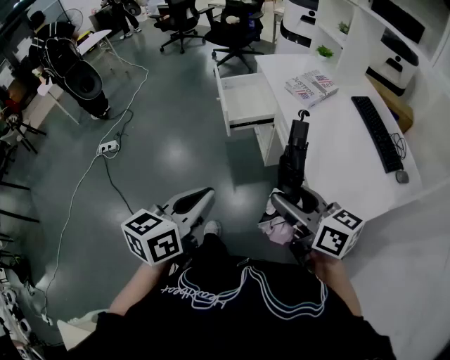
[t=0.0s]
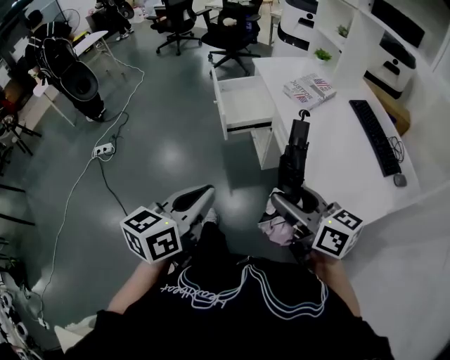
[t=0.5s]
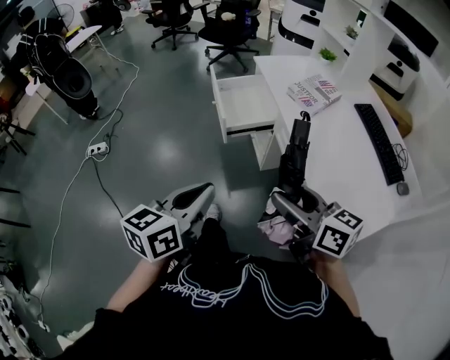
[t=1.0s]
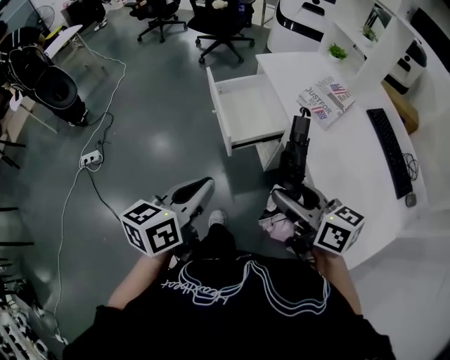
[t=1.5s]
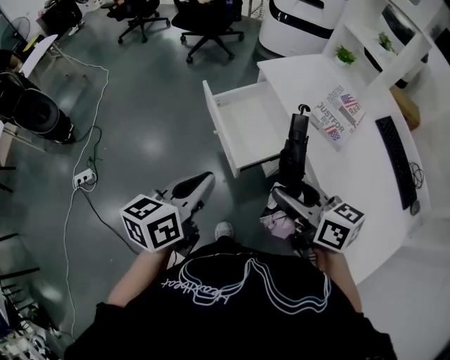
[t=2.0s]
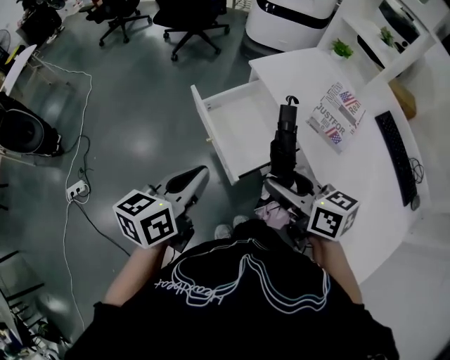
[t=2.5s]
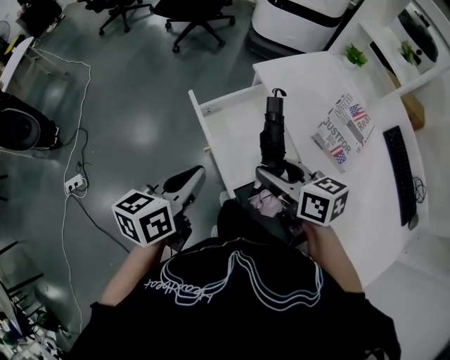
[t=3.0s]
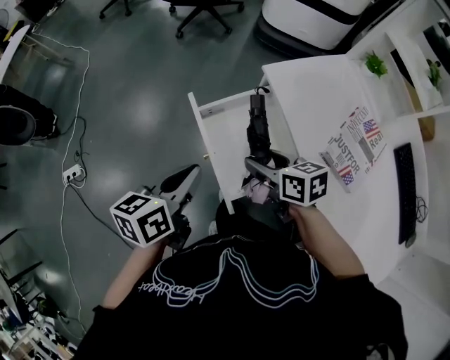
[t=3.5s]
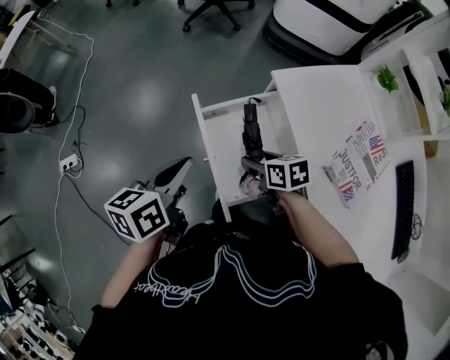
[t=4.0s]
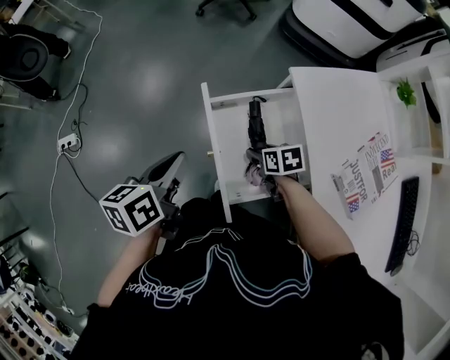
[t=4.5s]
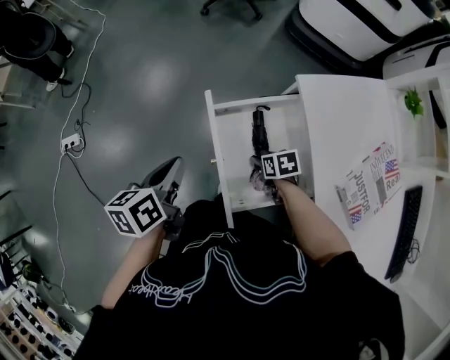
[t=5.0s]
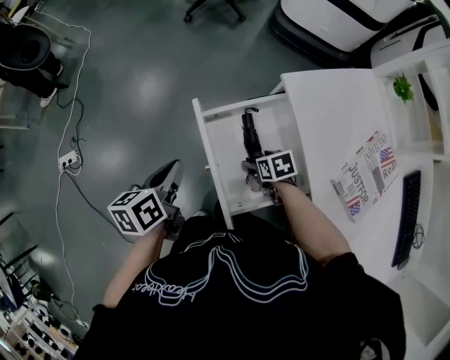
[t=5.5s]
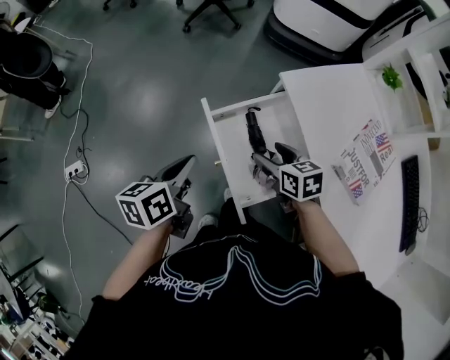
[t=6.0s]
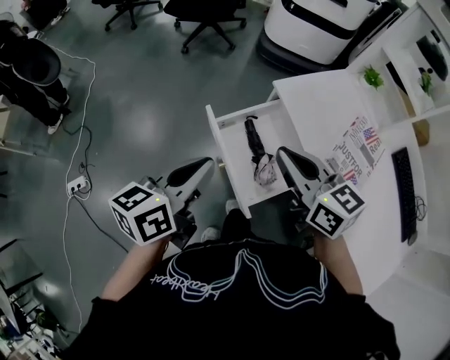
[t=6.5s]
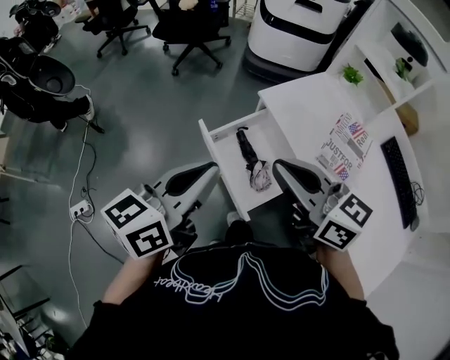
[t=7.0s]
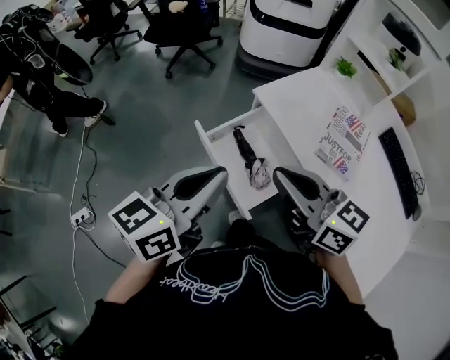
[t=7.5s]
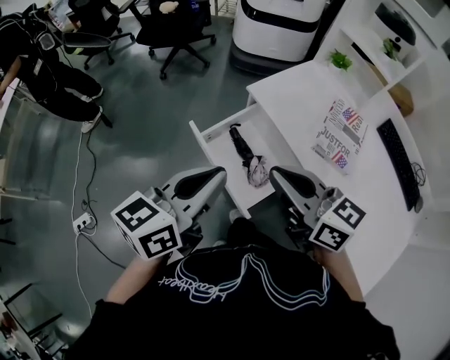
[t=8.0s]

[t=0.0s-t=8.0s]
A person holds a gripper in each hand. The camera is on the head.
t=0.0s to t=2.0s: Both grippers travel together forward, about 35 cm.
t=2.0s to t=4.0s: Both grippers move forward and downward, roughly 30 cm. The right gripper changes its angle by roughly 30 degrees.
t=4.0s to t=6.0s: The right gripper moves approximately 15 cm downward and comes back.
t=6.0s to t=8.0s: The right gripper travels upward and backward by approximately 30 cm, tips its fingers upward by about 30 degrees, and closes its fingers, while the left gripper goes some 20 cm upward and to the right, and turns by about 40 degrees.

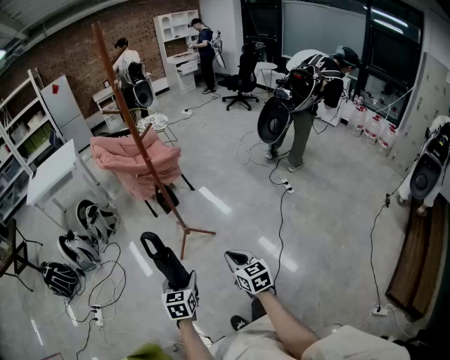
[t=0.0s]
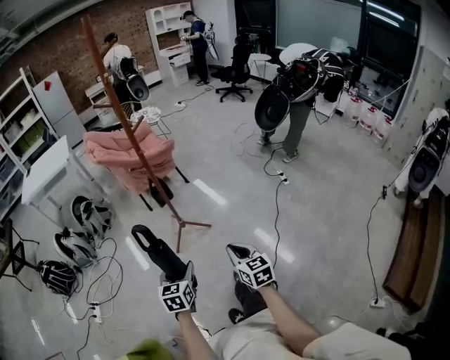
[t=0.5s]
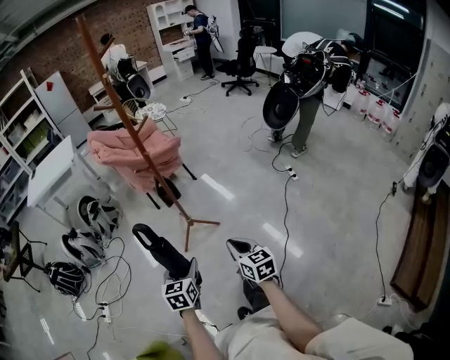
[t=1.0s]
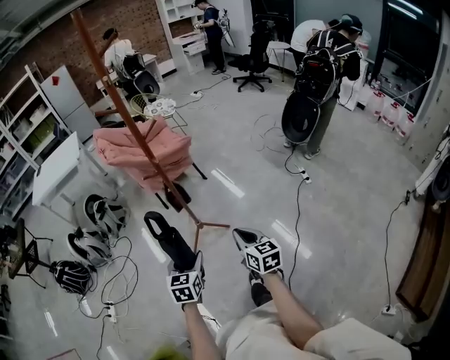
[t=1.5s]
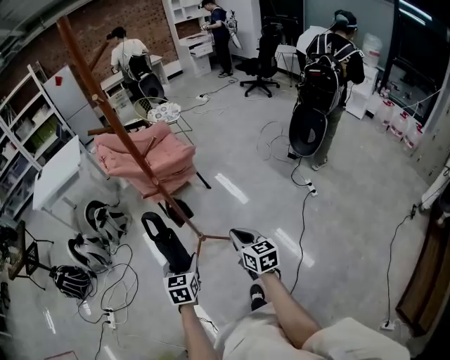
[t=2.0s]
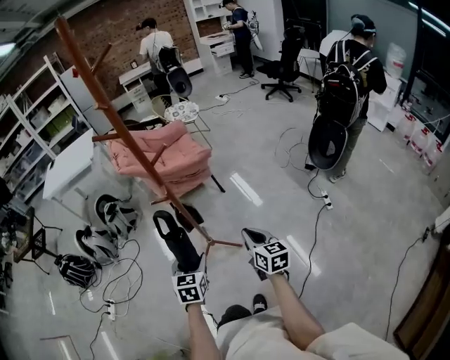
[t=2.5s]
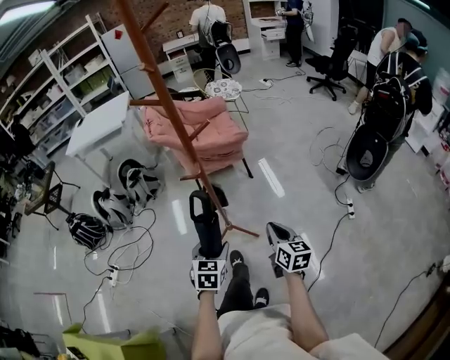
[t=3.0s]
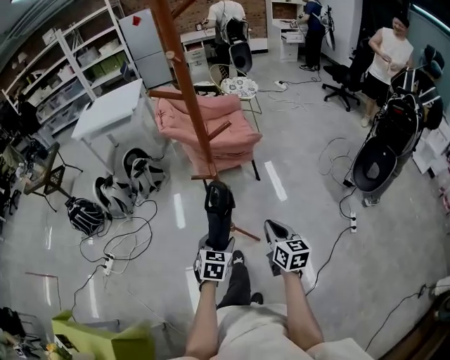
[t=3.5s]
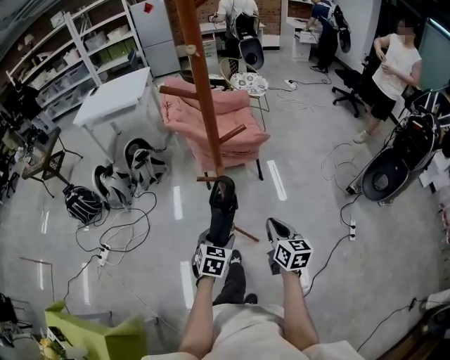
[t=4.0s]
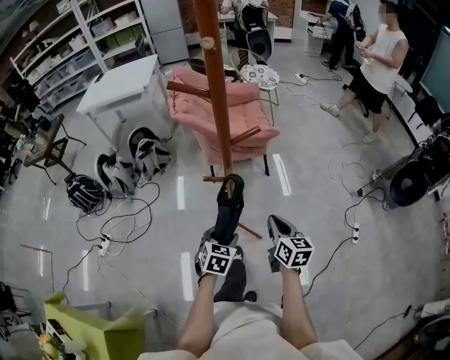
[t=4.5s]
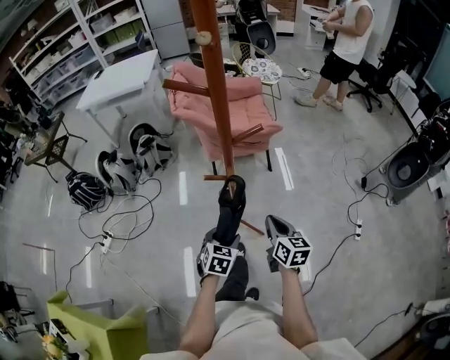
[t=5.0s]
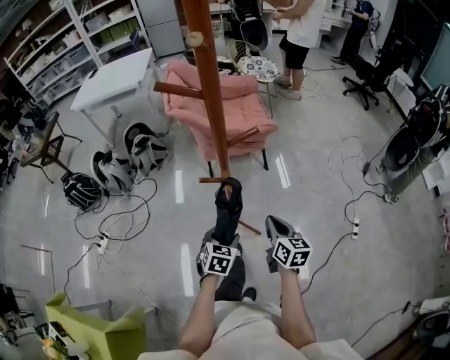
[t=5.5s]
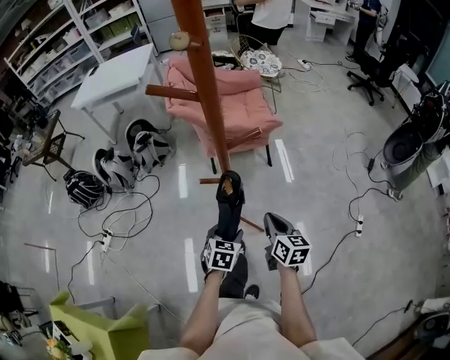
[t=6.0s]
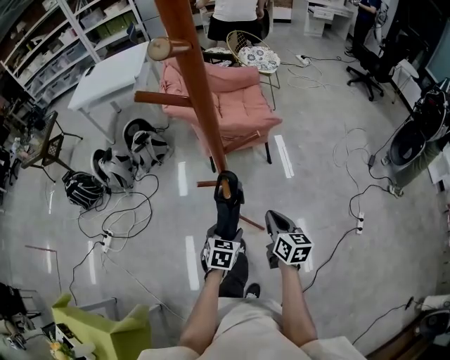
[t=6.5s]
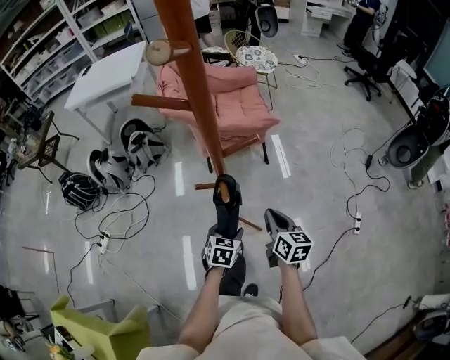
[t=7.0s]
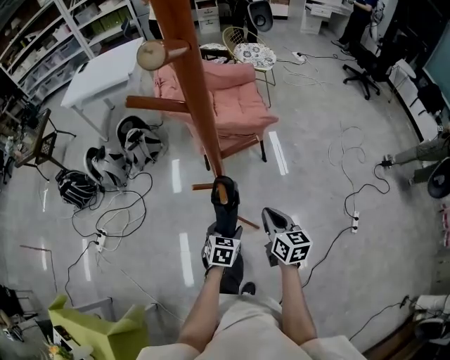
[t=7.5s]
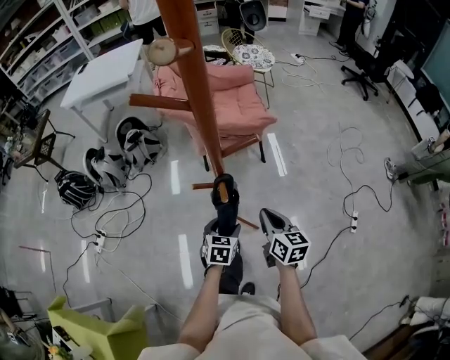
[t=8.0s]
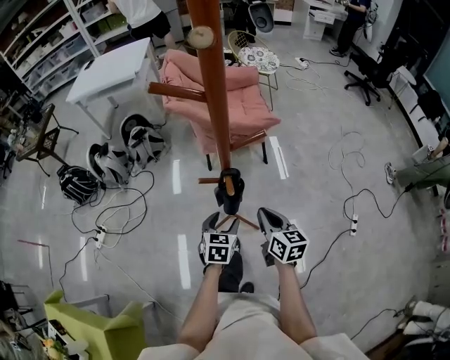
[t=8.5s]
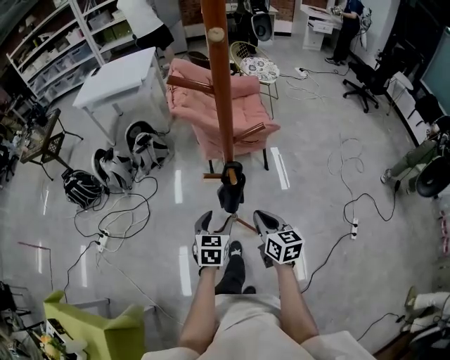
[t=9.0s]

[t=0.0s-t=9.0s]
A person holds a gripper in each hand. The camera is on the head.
t=0.0s to t=2.0s: The grippers both shift forward by some 20 cm.
t=2.0s to t=4.5s: The left gripper is displaced forward and downward by about 10 cm; the right gripper goes roughly 15 cm forward.
t=4.5s to t=7.0s: The left gripper changes place by approximately 5 cm.
t=7.0s to t=9.0s: The left gripper is displaced upward and to the left by about 10 cm. The right gripper goes approximately 5 cm to the left.

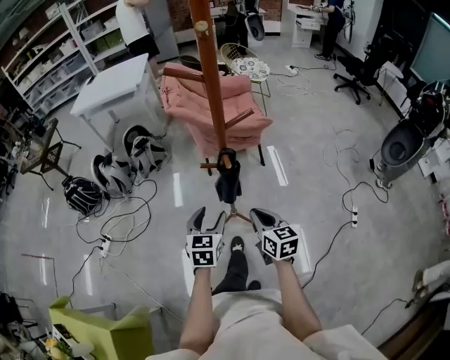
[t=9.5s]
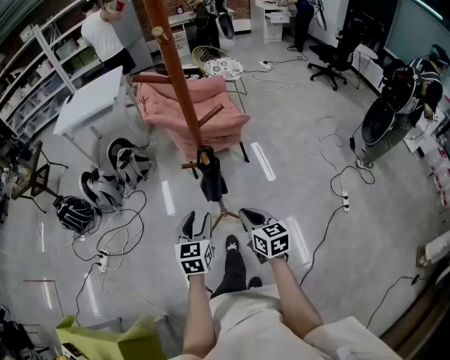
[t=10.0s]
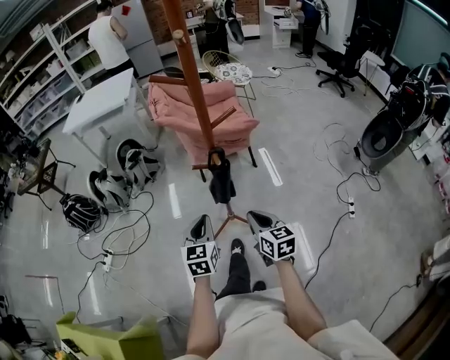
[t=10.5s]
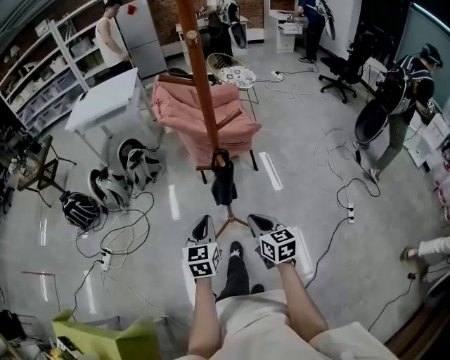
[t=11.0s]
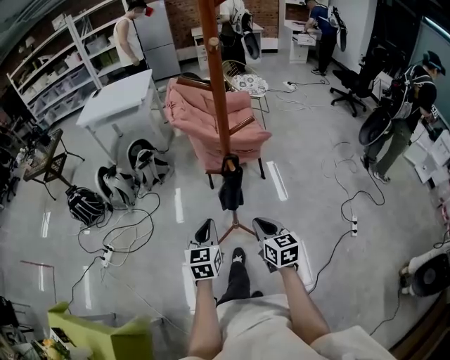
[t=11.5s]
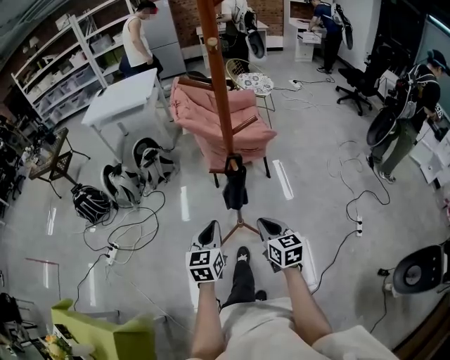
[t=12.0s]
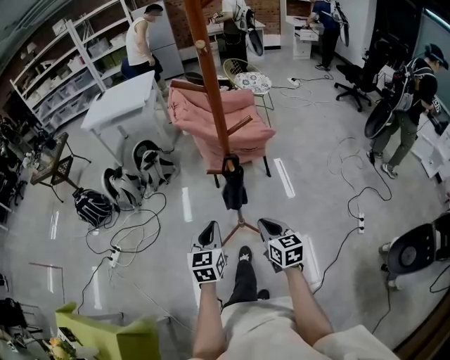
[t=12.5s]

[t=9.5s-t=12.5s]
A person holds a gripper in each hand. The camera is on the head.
t=9.5s to t=11.0s: The left gripper closes.
t=11.0s to t=12.5s: There are only small adjustments of the grippers.

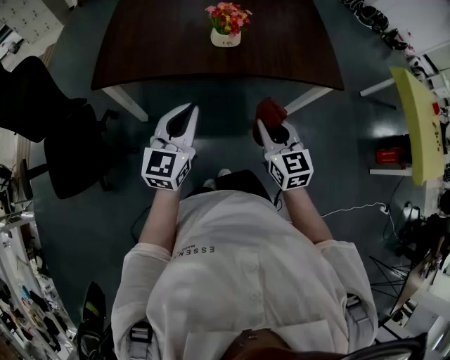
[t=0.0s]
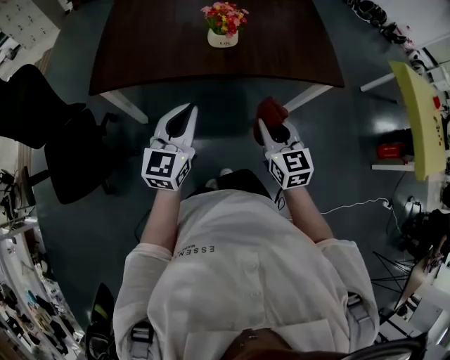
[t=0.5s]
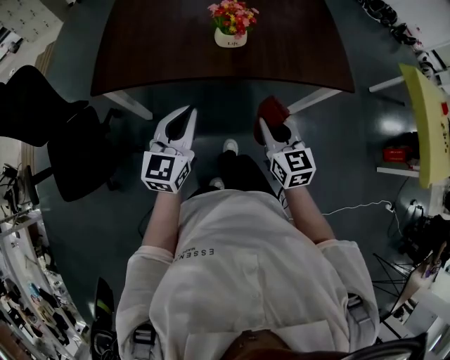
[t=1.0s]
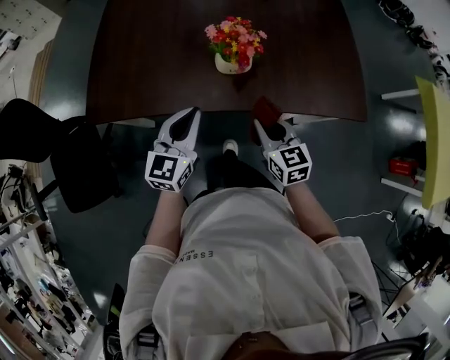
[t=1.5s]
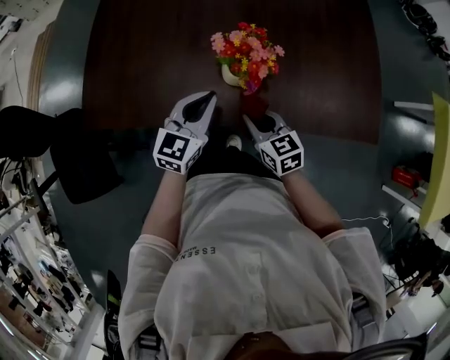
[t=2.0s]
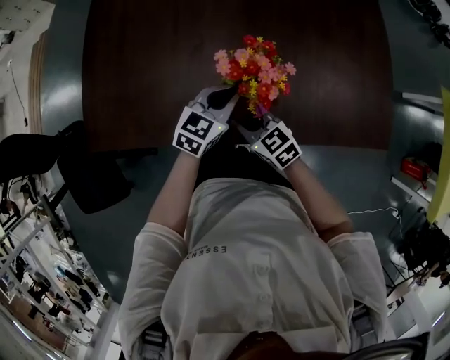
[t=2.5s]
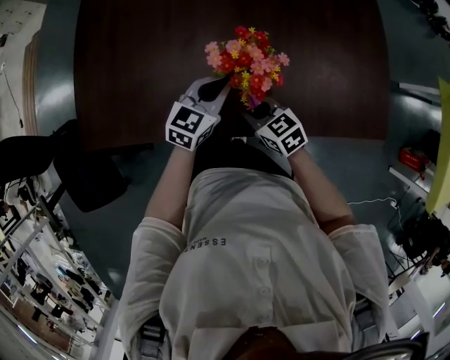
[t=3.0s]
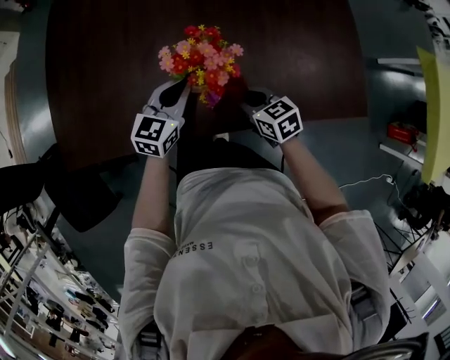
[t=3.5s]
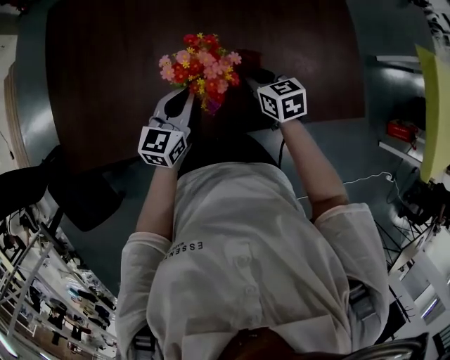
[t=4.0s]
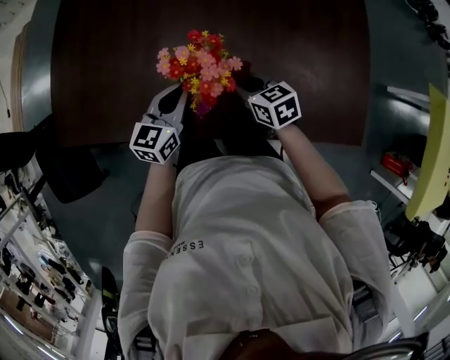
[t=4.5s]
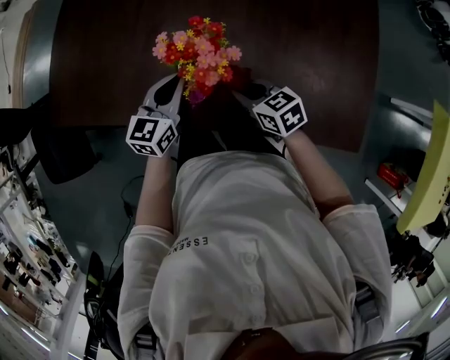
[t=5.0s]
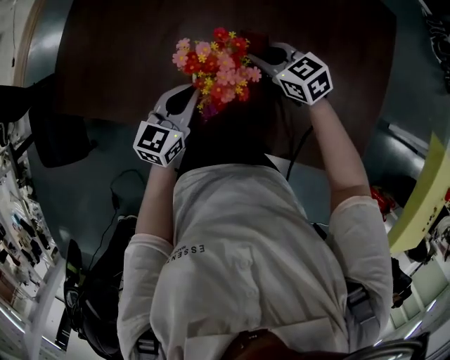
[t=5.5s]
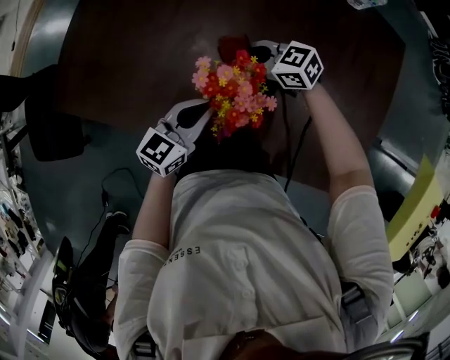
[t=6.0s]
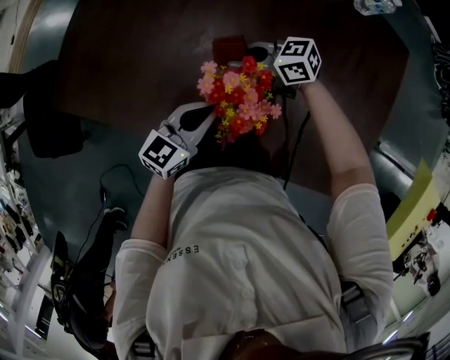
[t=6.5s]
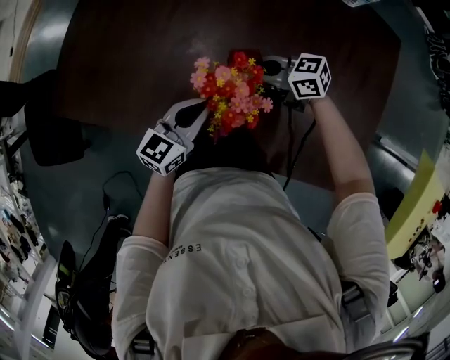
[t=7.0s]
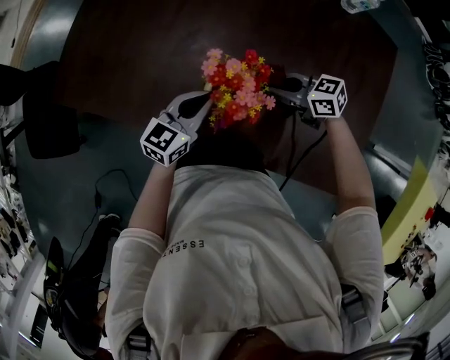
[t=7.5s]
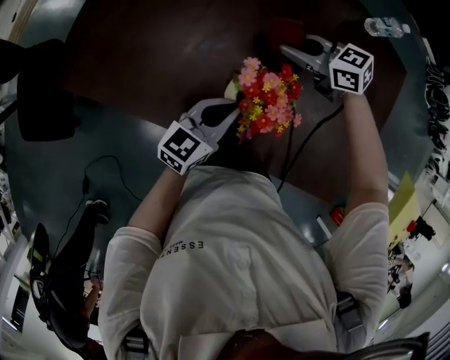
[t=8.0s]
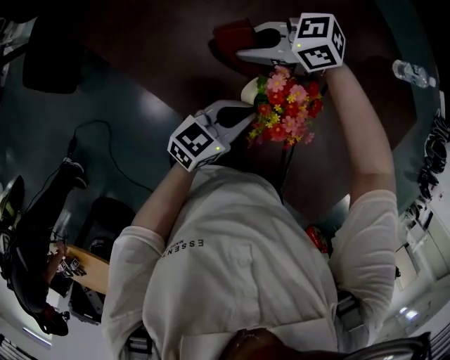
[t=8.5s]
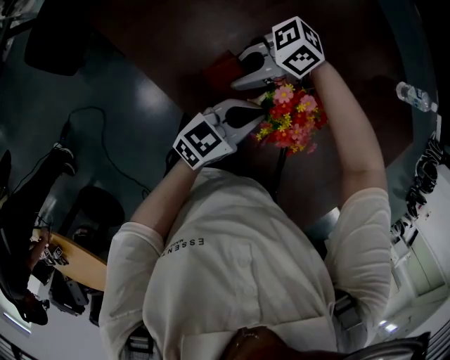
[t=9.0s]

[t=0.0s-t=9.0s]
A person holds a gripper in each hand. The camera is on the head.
t=0.0s to t=2.0s: The right gripper shifts some 35 cm forward and downward, and swivels approximately 30 degrees. The left gripper travels forward by about 30 cm.
t=2.0s to t=4.5s: The right gripper travels forward and to the right by about 15 cm. Meanwhile the left gripper heads forward and downward, covering some 10 cm.
t=4.5s to t=7.0s: The right gripper changes its angle by roughly 50 degrees.
t=7.0s to t=9.0s: The right gripper ends up about 20 cm from where it was, and rotates some 60 degrees.
